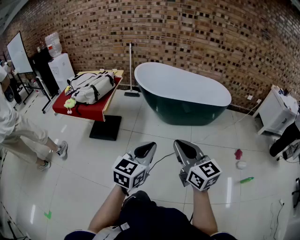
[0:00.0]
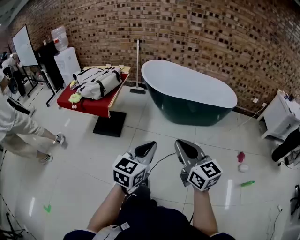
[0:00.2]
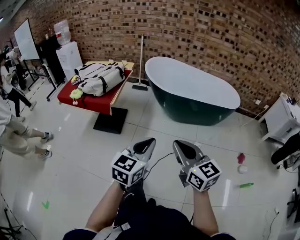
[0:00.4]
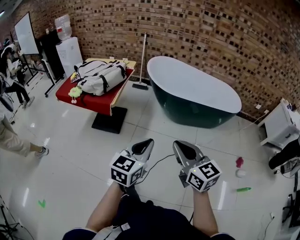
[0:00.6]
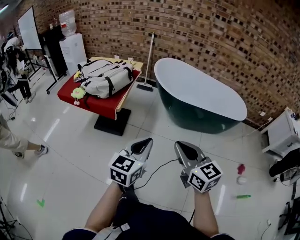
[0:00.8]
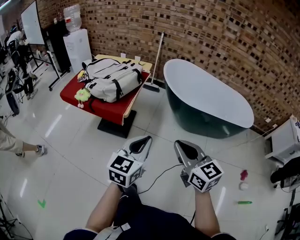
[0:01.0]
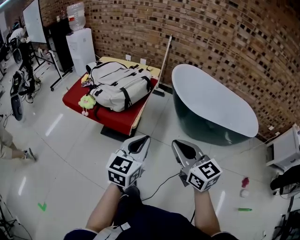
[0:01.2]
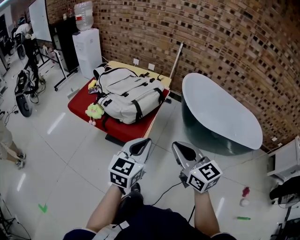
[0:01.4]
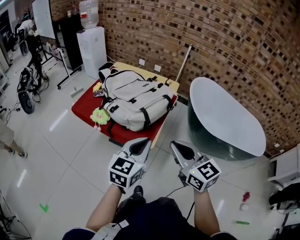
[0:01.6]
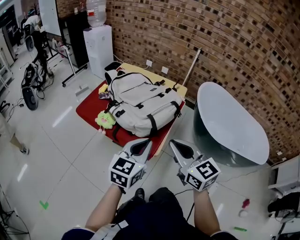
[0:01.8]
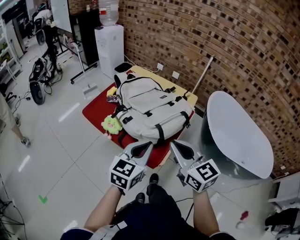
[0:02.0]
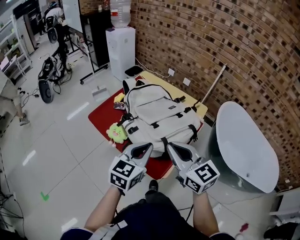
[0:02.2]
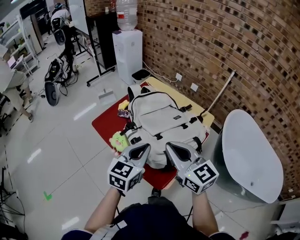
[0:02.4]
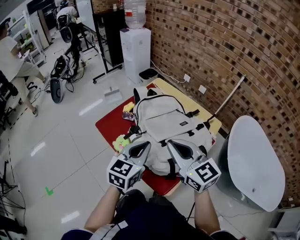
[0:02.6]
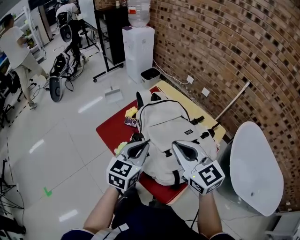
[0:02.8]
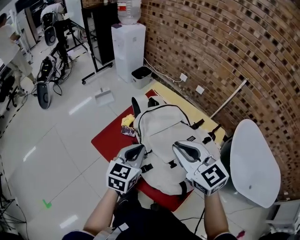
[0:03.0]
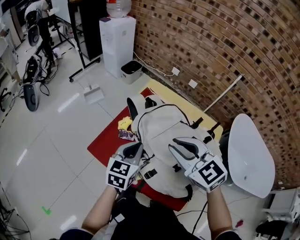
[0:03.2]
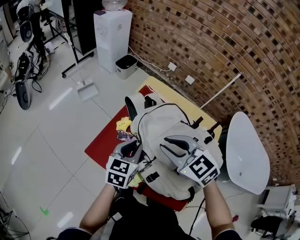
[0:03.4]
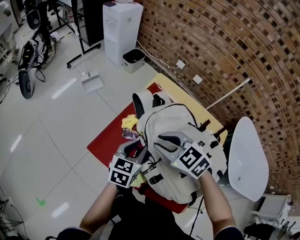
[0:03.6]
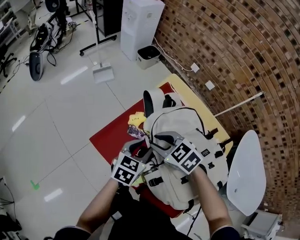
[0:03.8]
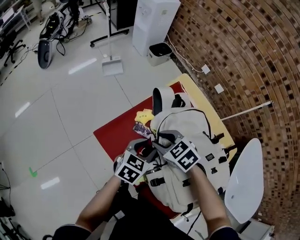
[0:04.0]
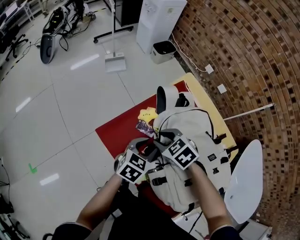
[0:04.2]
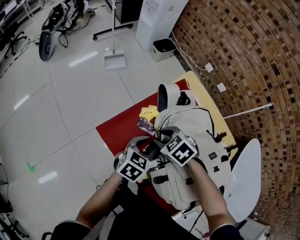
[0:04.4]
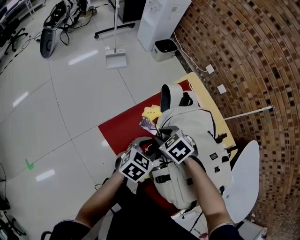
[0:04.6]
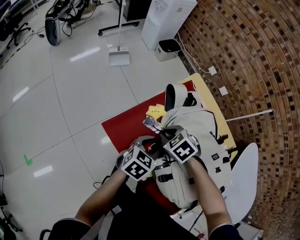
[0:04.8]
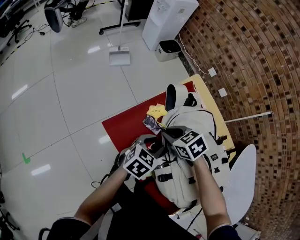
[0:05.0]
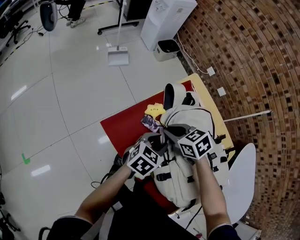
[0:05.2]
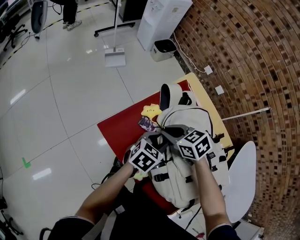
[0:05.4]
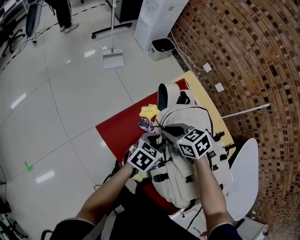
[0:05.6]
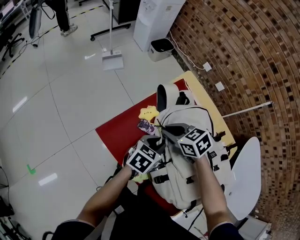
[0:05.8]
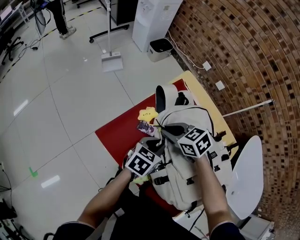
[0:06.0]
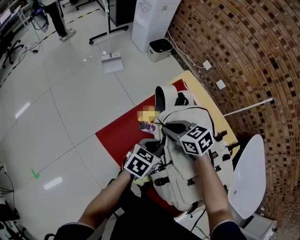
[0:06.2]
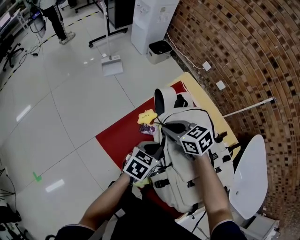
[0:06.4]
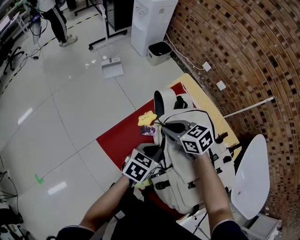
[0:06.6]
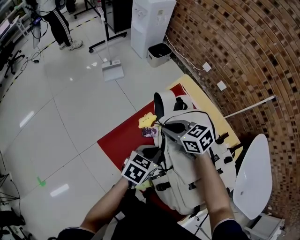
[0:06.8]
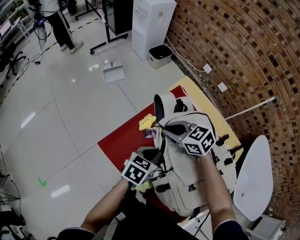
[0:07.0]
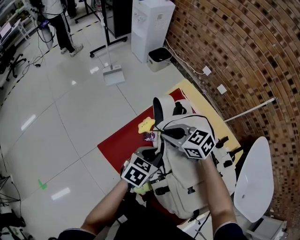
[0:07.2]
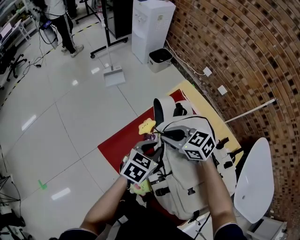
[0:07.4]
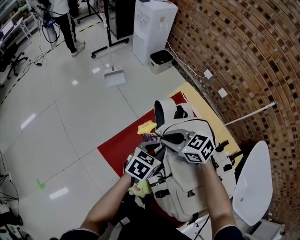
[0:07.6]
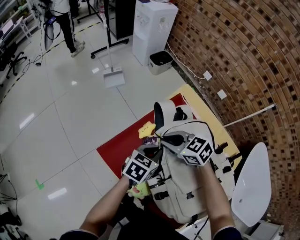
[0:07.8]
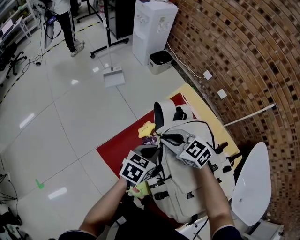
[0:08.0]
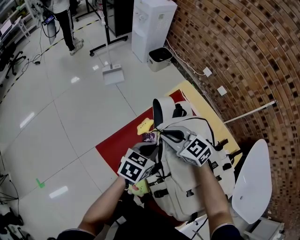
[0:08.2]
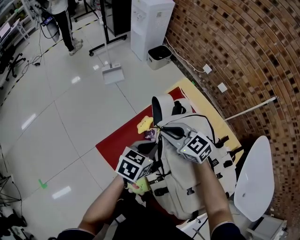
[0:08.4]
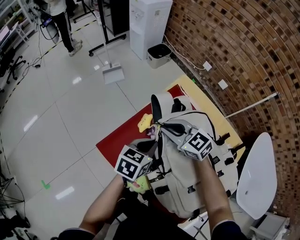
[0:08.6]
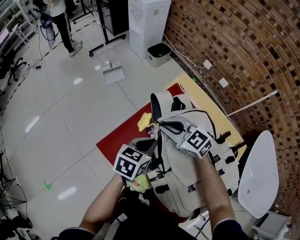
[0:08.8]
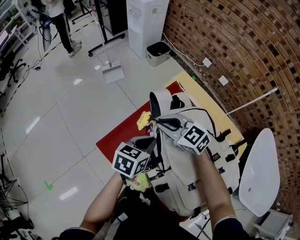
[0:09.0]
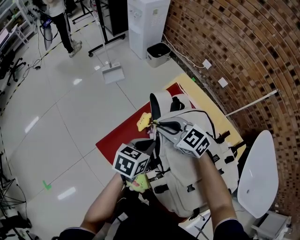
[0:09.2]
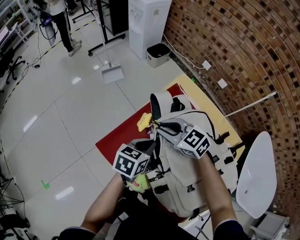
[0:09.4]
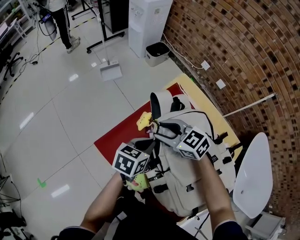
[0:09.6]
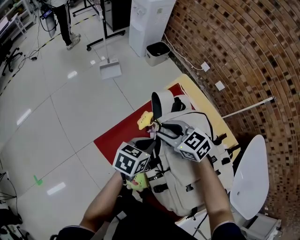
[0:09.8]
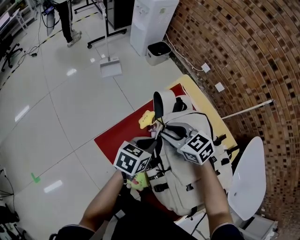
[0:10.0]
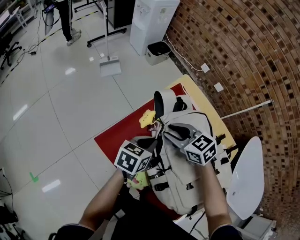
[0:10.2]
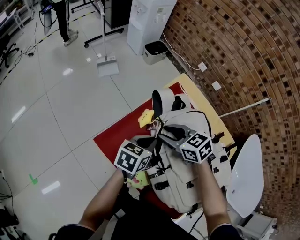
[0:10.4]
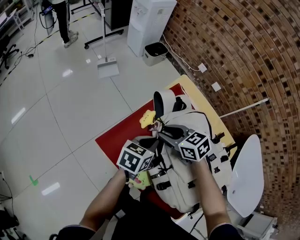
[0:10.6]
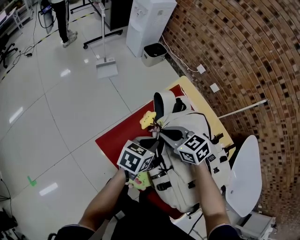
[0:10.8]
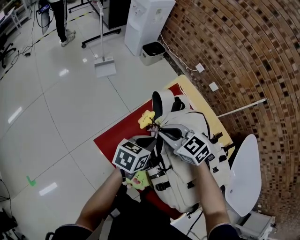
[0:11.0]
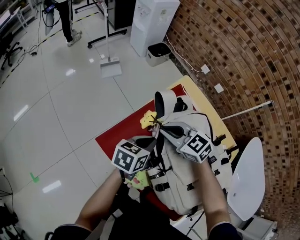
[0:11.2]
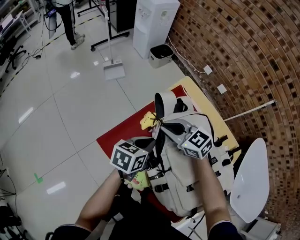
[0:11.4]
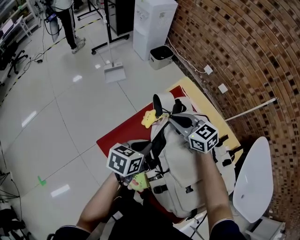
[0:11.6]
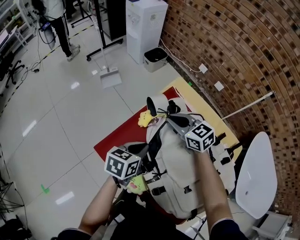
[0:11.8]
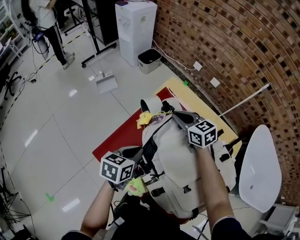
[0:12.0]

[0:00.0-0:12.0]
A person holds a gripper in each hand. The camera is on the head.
0:00.0 to 0:01.6: The two grippers travel together, forward and to the left, some 50 cm. The right gripper swivels roughly 20 degrees.
0:01.6 to 0:03.0: The left gripper shifts about 35 cm forward and to the left, and swivels some 20 degrees; the right gripper goes about 35 cm forward, and swivels approximately 30 degrees.
0:03.0 to 0:04.4: The left gripper moves downward, about 15 cm, and opens its fingers. The right gripper goes roughly 30 cm downward, to the left and forward, points its fingers about 40 degrees further downward, and opens up.
0:04.4 to 0:06.0: The right gripper changes place by approximately 5 cm, turns by approximately 20 degrees, and closes its fingers.
0:06.0 to 0:07.6: The grippers stay close to where they were, moving slightly.
0:09.0 to 0:10.4: The right gripper swivels approximately 20 degrees, and opens up.
0:10.4 to 0:12.0: The right gripper goes about 15 cm to the right and forward, changes its angle by roughly 20 degrees, and closes.

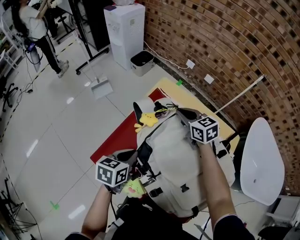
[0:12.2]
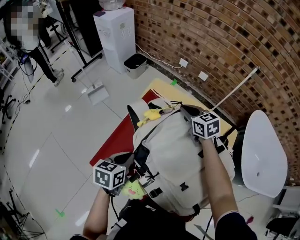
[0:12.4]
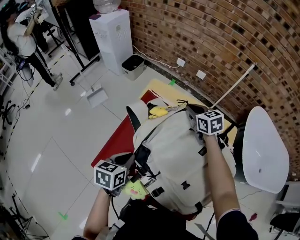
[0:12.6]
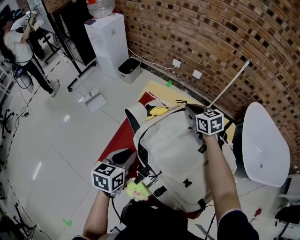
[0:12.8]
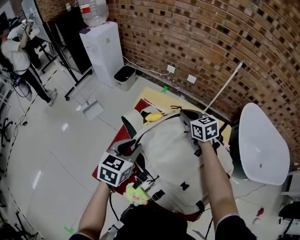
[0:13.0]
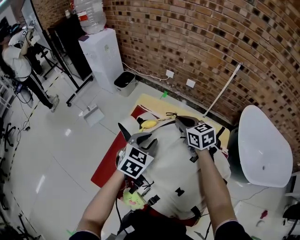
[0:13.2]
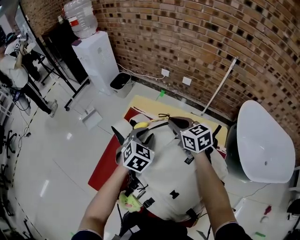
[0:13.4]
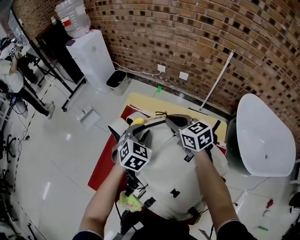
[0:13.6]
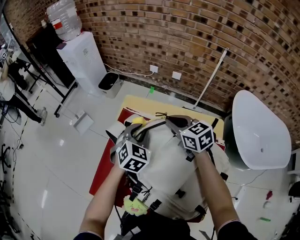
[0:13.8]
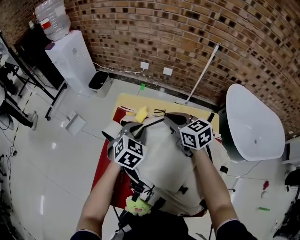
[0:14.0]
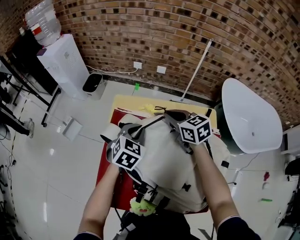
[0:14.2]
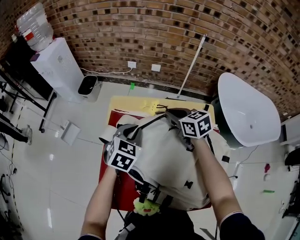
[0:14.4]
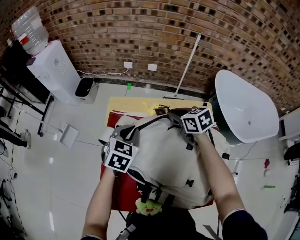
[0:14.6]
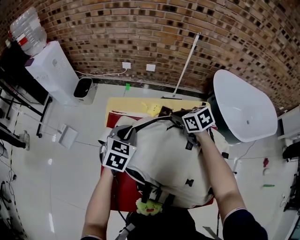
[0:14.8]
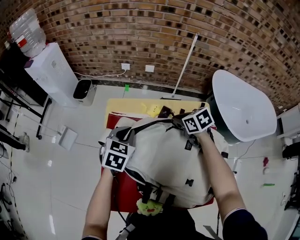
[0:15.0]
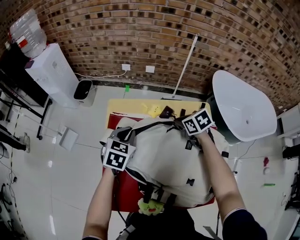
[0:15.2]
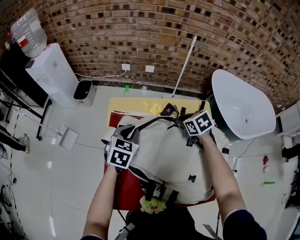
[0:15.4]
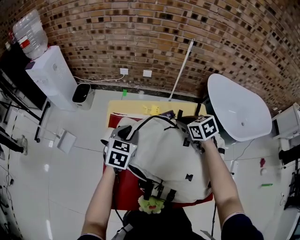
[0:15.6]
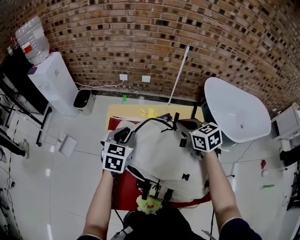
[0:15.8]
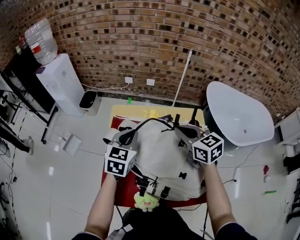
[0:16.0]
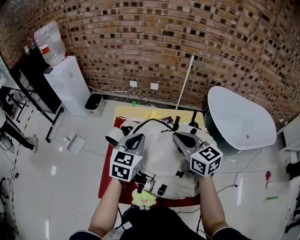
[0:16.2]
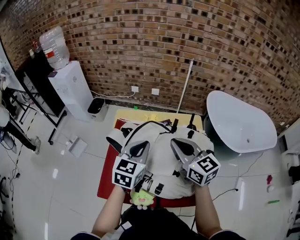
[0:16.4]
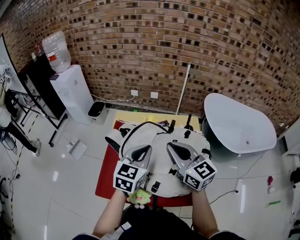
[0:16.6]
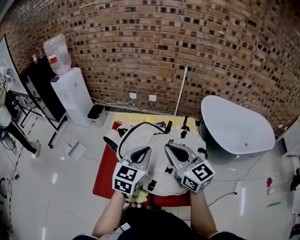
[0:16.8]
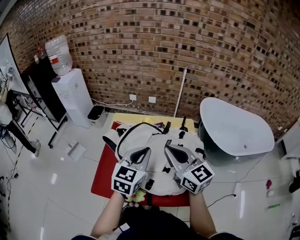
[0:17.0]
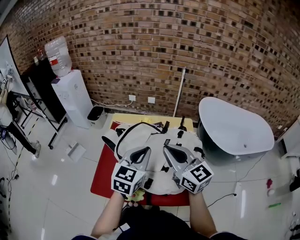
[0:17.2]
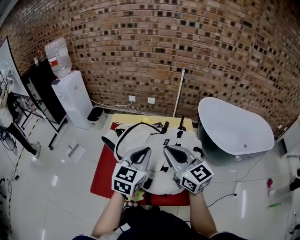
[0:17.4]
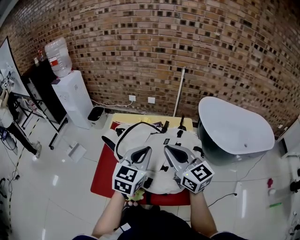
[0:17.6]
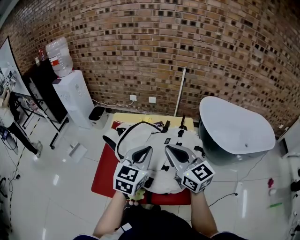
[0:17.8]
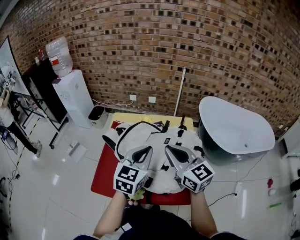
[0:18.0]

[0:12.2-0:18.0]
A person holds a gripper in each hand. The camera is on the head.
0:12.2 to 0:13.6: The right gripper heads to the right, covering about 10 cm. Meanwhile the left gripper travels forward and to the right by approximately 20 cm, twists about 50 degrees clockwise, seen from behind, and opens up.
0:13.6 to 0:15.0: The right gripper goes about 10 cm to the right and downward, and changes its angle by some 30 degrees. Meanwhile the left gripper changes its angle by approximately 20 degrees, and closes.
0:15.0 to 0:16.6: The left gripper travels backward, upward and to the right by approximately 25 cm, turns by approximately 20 degrees, and opens, then closes once more; the right gripper moves upward and backward, some 30 cm, and points its fingers roughly 50 degrees further upward.
0:16.6 to 0:18.0: The left gripper changes place by some 5 cm; the right gripper changes place by some 5 cm.

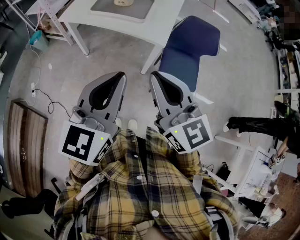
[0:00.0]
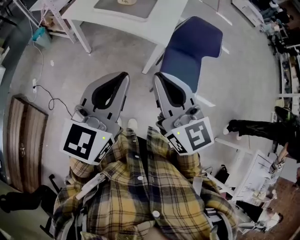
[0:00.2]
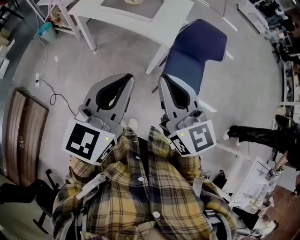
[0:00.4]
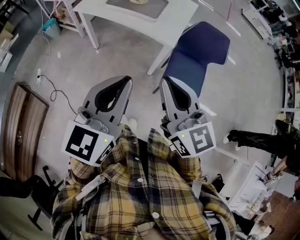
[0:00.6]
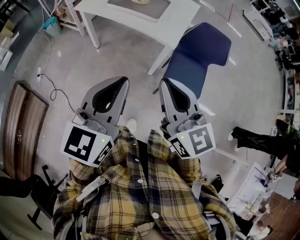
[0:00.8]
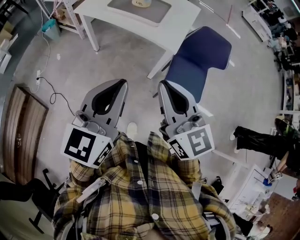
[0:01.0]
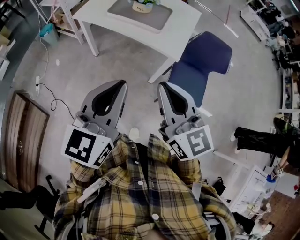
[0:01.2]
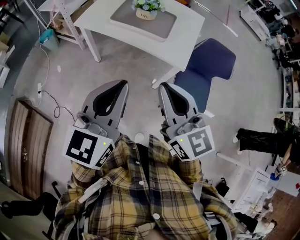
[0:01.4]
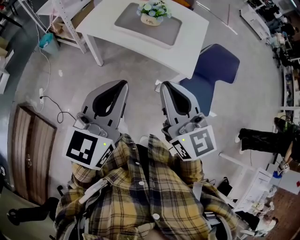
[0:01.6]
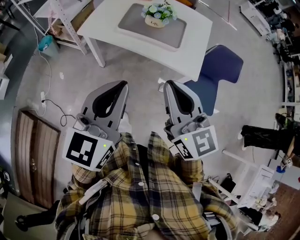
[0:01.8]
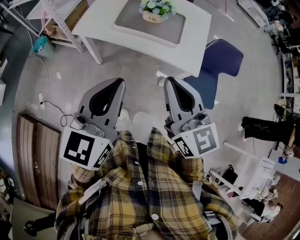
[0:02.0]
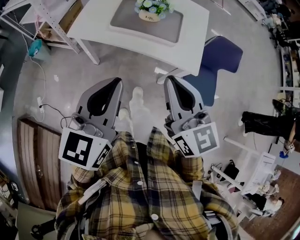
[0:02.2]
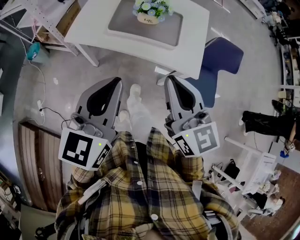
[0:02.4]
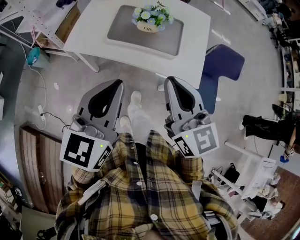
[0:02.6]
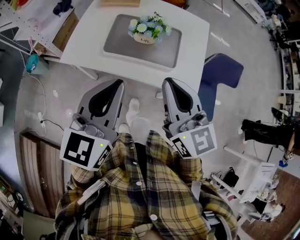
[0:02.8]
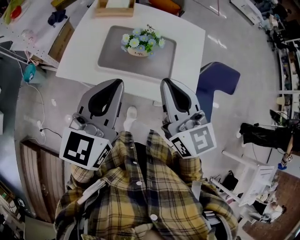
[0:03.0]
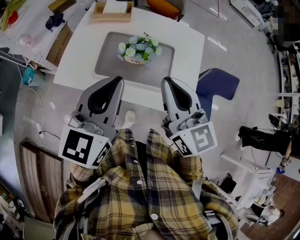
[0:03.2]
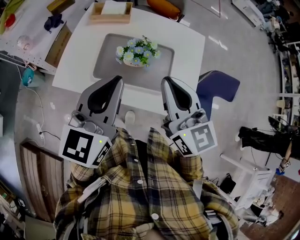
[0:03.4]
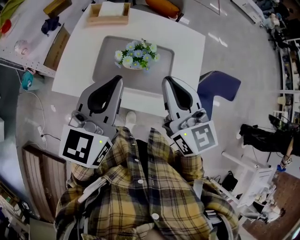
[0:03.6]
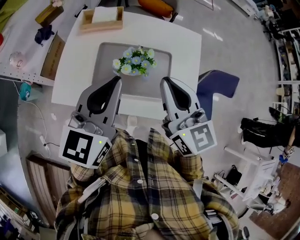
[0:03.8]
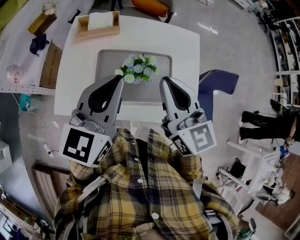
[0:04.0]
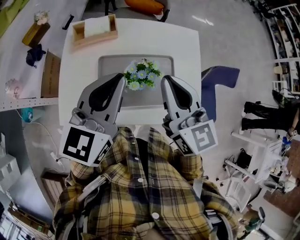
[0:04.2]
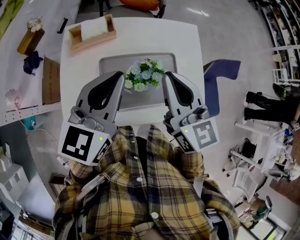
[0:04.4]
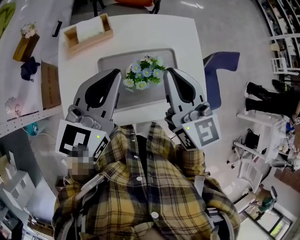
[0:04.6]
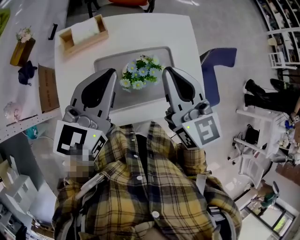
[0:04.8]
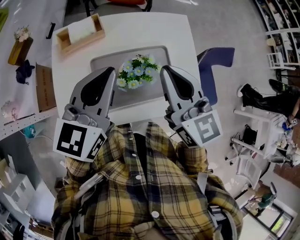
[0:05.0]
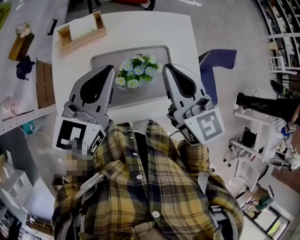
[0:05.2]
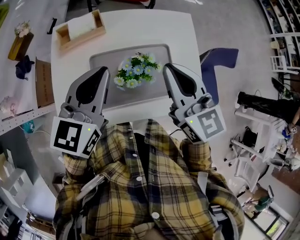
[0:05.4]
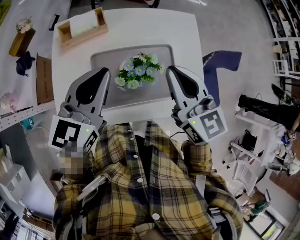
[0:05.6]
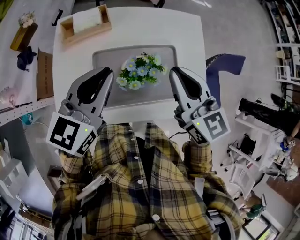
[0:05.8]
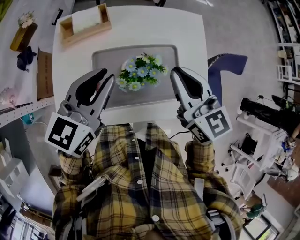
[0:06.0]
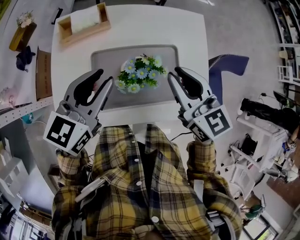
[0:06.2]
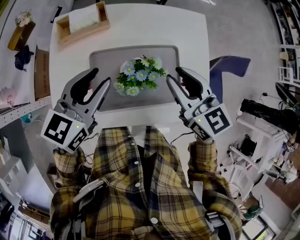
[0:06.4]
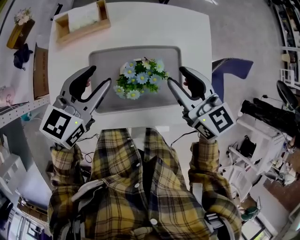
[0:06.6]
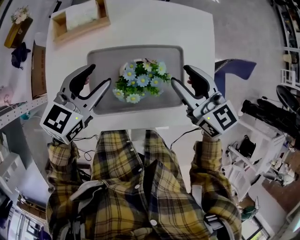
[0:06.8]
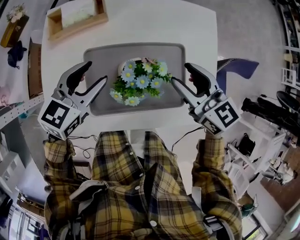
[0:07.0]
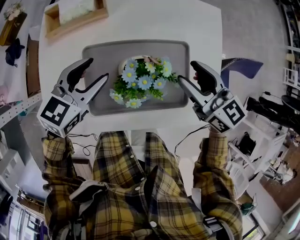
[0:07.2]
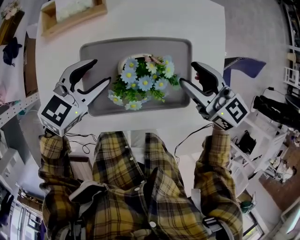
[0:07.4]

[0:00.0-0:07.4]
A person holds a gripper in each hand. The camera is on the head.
0:00.0 to 0:01.4: The left gripper moves to the left and forward, about 15 cm. The right gripper heads forward and to the left, covering about 10 cm.
0:01.4 to 0:03.0: Both grippers move forward, about 35 cm.
0:03.0 to 0:04.4: The two grippers go roughly 20 cm forward. The left gripper turns by about 20 degrees.
0:04.4 to 0:06.0: The grippers both shift downward by some 5 cm.
0:06.0 to 0:07.4: The two grippers go some 15 cm downward. The right gripper rotates about 20 degrees, and opens its fingers; the left gripper rotates roughly 20 degrees, and opens its fingers.
